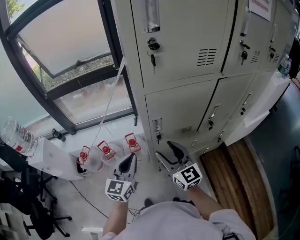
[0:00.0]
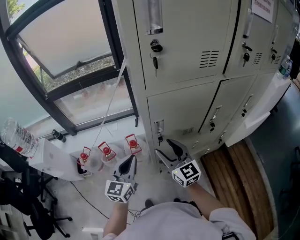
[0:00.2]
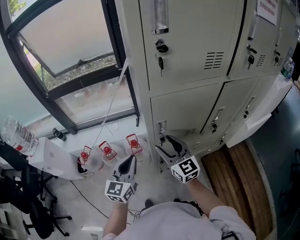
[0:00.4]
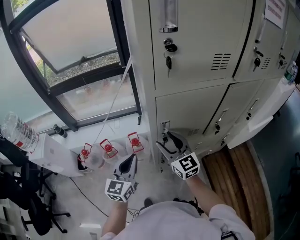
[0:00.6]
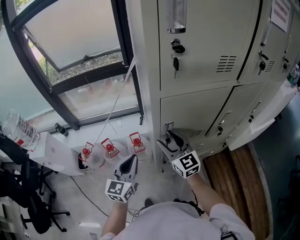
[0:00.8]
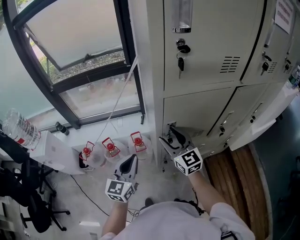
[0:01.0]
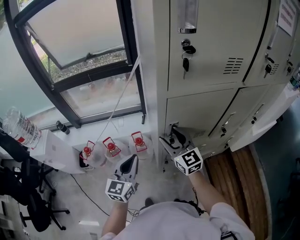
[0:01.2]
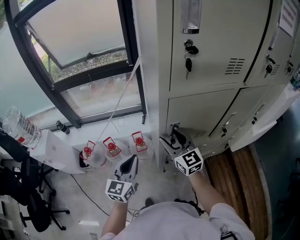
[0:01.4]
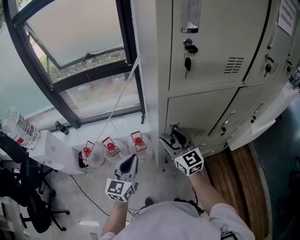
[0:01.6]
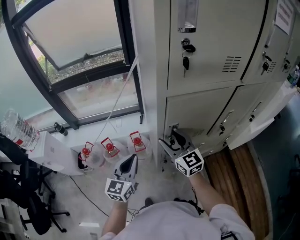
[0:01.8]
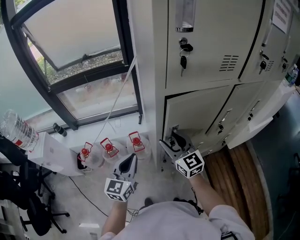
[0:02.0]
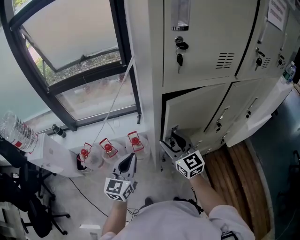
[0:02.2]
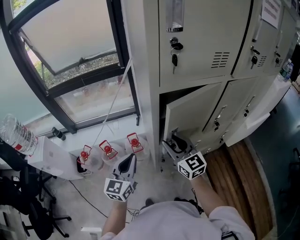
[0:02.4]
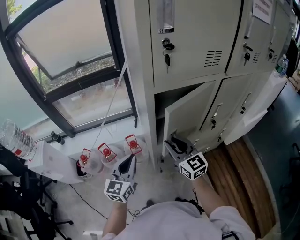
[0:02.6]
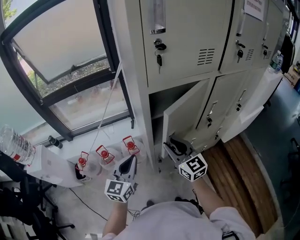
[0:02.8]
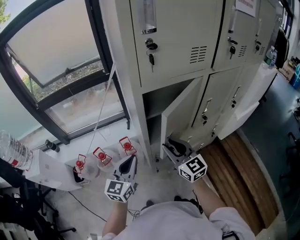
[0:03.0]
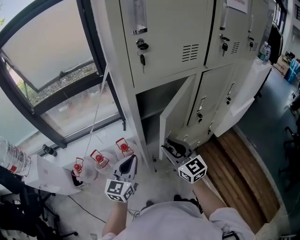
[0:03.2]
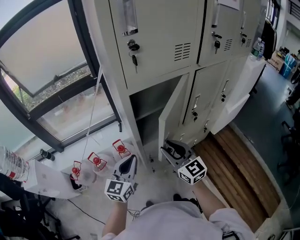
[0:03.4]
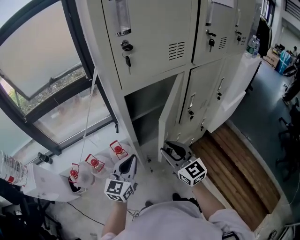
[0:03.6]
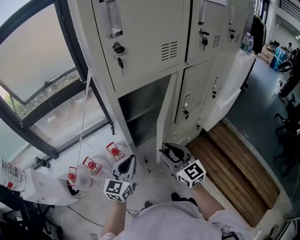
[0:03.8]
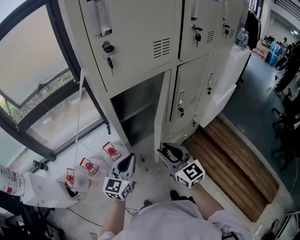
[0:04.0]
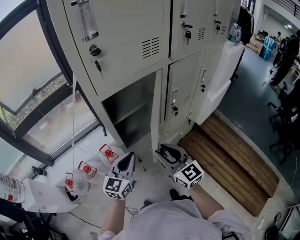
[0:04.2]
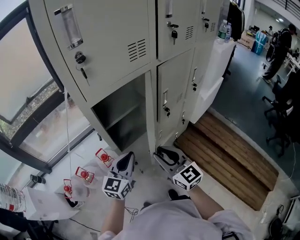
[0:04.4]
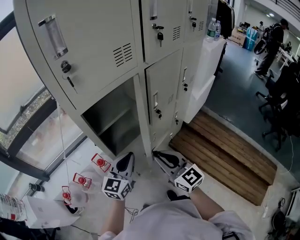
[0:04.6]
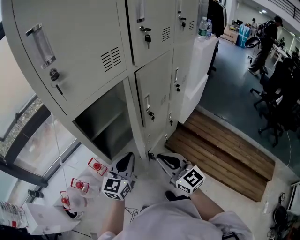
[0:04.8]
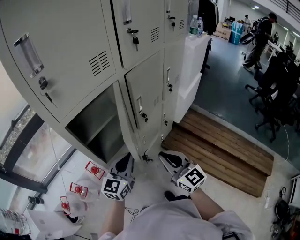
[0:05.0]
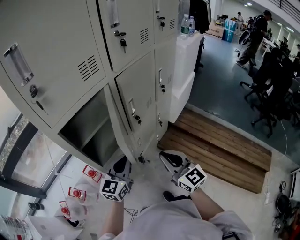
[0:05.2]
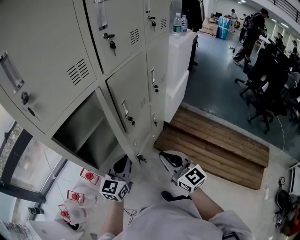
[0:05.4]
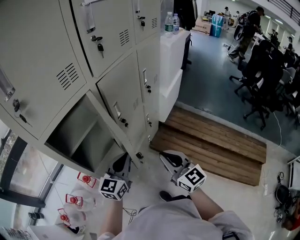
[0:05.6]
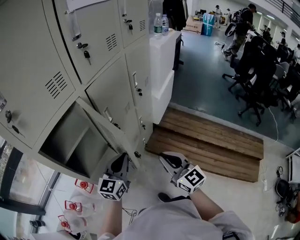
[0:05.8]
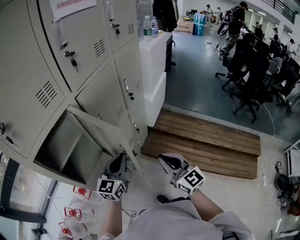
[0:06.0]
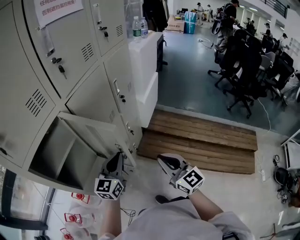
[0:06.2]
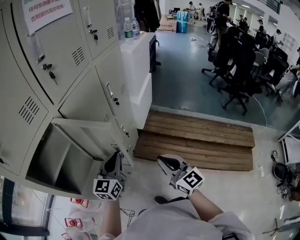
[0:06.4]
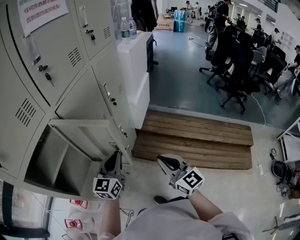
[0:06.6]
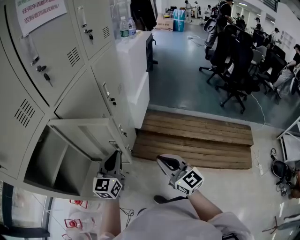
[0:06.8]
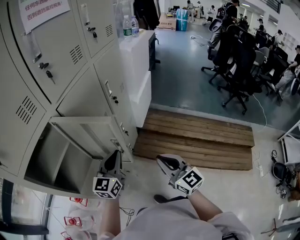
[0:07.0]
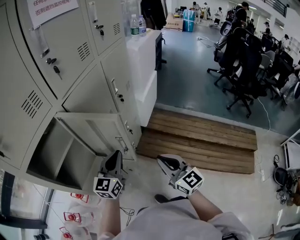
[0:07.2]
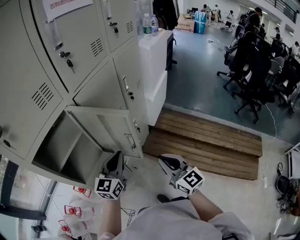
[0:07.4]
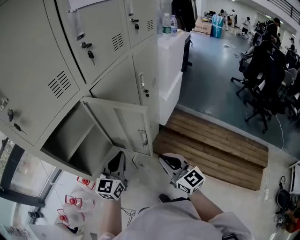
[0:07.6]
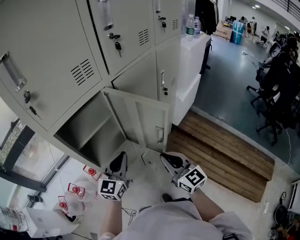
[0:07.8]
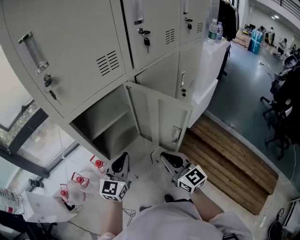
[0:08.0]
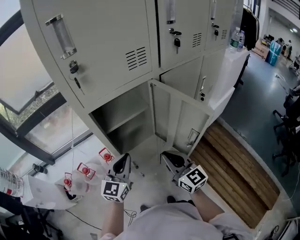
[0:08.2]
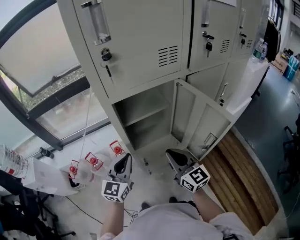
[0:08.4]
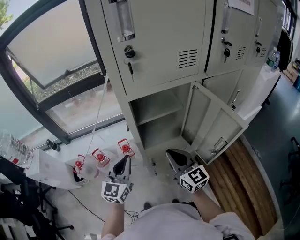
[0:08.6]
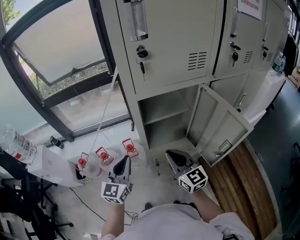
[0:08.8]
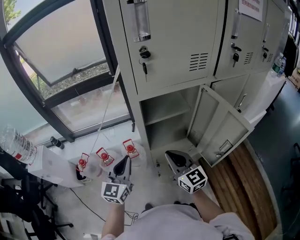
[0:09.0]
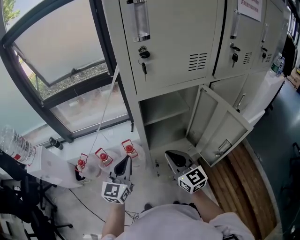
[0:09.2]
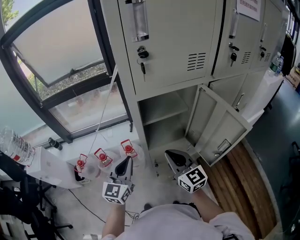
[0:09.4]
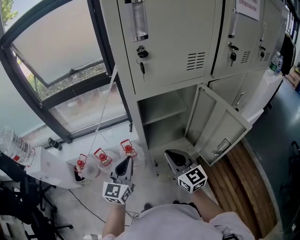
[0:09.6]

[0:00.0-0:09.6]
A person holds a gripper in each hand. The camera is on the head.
0.0 to 1.6 s: The left gripper moves approximately 5 cm; the right gripper heads forward, covering approximately 10 cm.
1.6 to 3.2 s: The right gripper travels backward and to the right by some 10 cm, and closes up; the left gripper moves to the right, some 5 cm.
3.2 to 4.8 s: The right gripper moves to the right and backward, about 15 cm, and closes up. Meanwhile the left gripper is displaced to the right by roughly 15 cm, and rotates roughly 20 degrees.
4.8 to 6.4 s: The right gripper shifts approximately 20 cm to the right, and swivels roughly 30 degrees. The left gripper is displaced to the right and forward by some 20 cm.
6.4 to 8.0 s: The right gripper moves about 20 cm, and turns by some 30 degrees. The left gripper changes place by some 20 cm, and rotates about 30 degrees.
8.0 to 9.6 s: The right gripper travels to the left and forward by approximately 20 cm. Meanwhile the left gripper heads to the left, covering some 20 cm, and changes its angle by about 20 degrees.

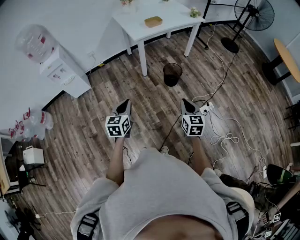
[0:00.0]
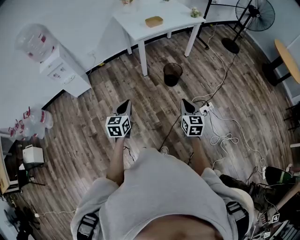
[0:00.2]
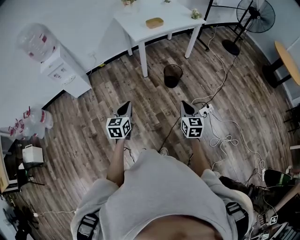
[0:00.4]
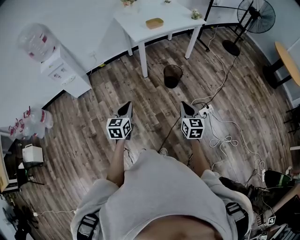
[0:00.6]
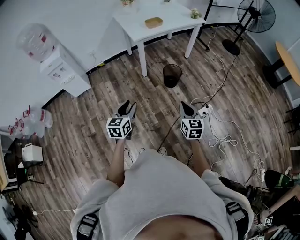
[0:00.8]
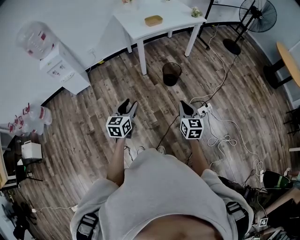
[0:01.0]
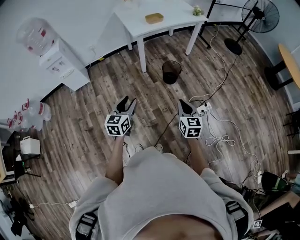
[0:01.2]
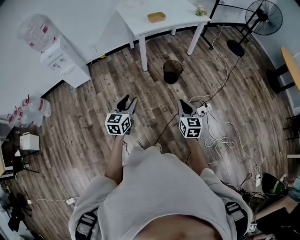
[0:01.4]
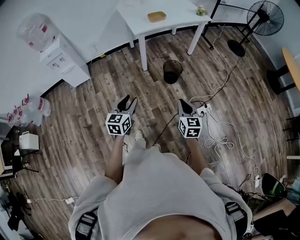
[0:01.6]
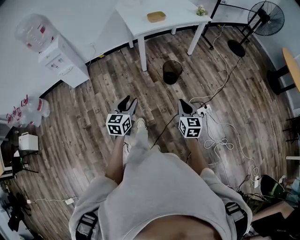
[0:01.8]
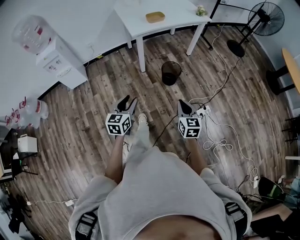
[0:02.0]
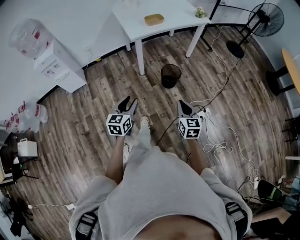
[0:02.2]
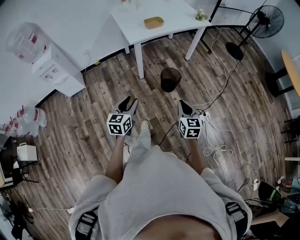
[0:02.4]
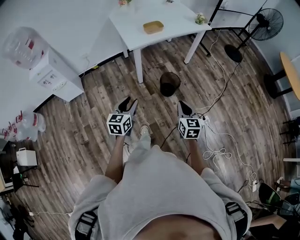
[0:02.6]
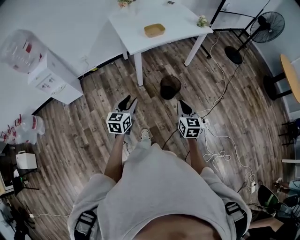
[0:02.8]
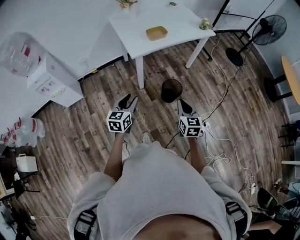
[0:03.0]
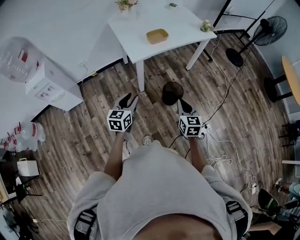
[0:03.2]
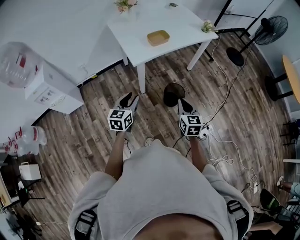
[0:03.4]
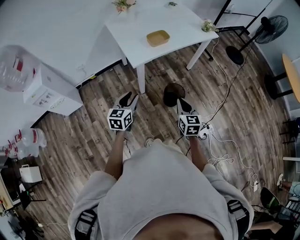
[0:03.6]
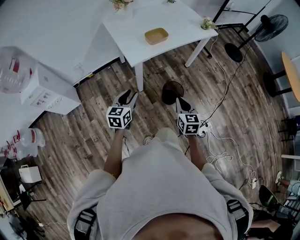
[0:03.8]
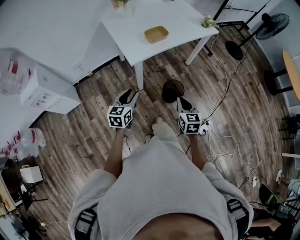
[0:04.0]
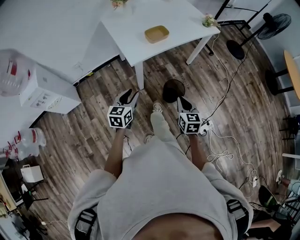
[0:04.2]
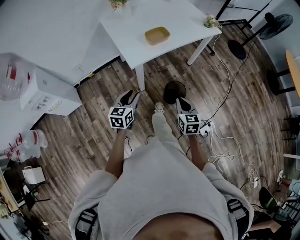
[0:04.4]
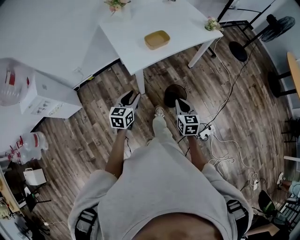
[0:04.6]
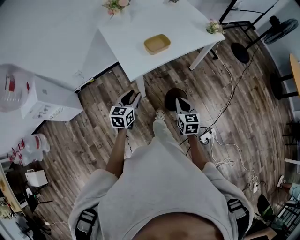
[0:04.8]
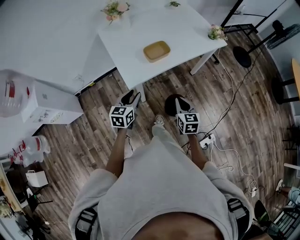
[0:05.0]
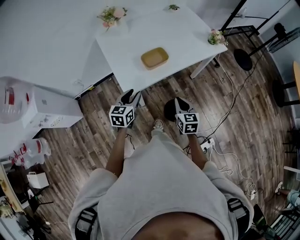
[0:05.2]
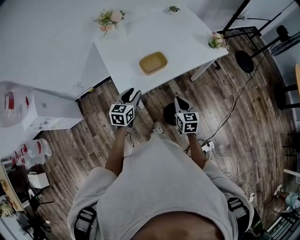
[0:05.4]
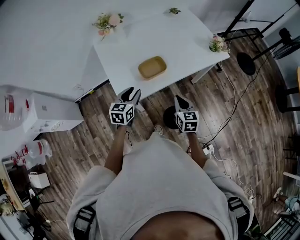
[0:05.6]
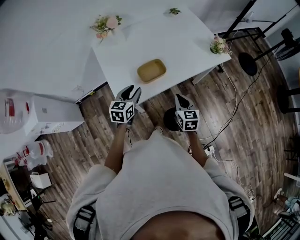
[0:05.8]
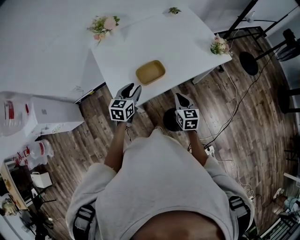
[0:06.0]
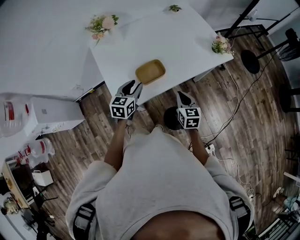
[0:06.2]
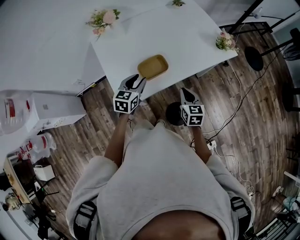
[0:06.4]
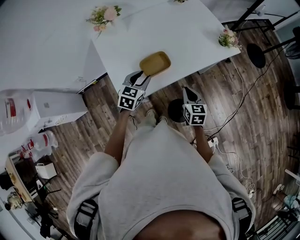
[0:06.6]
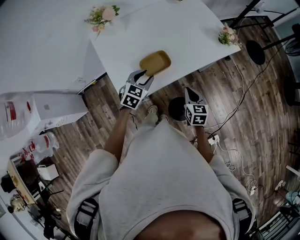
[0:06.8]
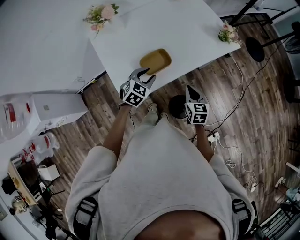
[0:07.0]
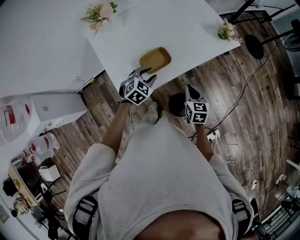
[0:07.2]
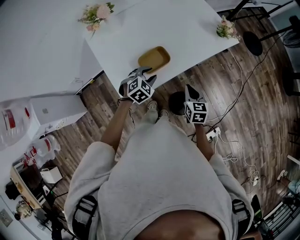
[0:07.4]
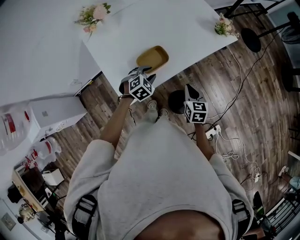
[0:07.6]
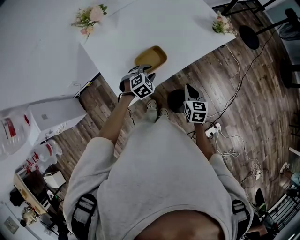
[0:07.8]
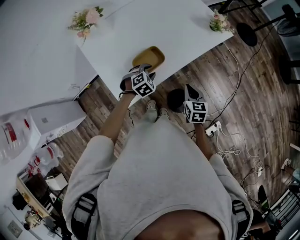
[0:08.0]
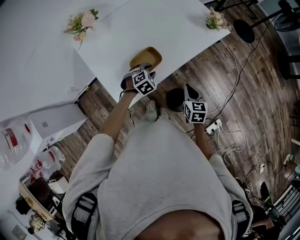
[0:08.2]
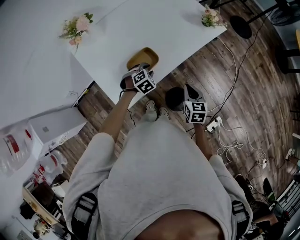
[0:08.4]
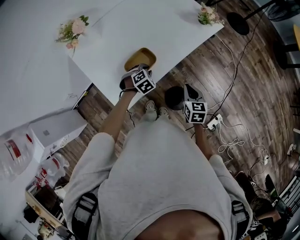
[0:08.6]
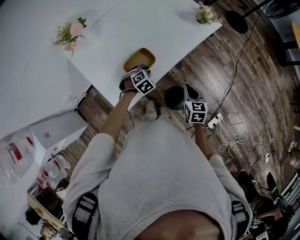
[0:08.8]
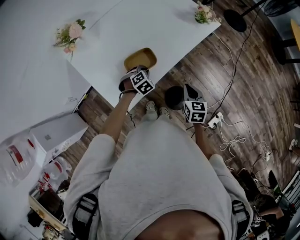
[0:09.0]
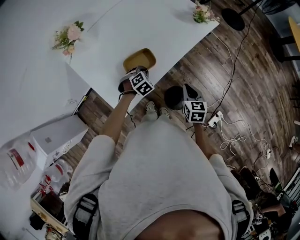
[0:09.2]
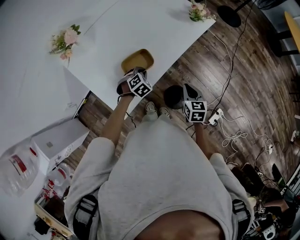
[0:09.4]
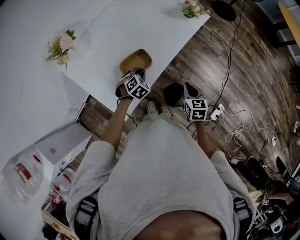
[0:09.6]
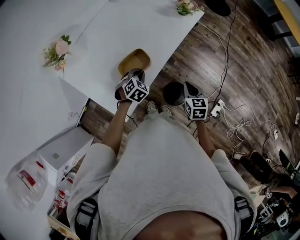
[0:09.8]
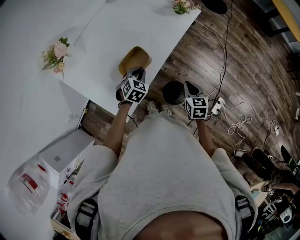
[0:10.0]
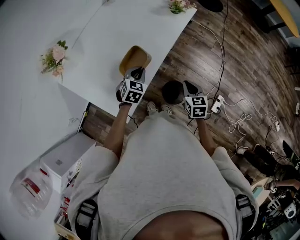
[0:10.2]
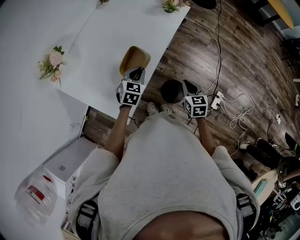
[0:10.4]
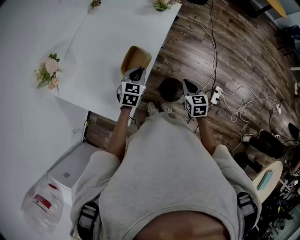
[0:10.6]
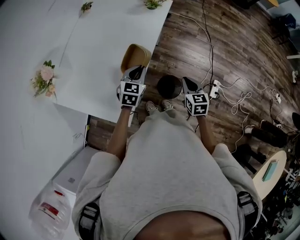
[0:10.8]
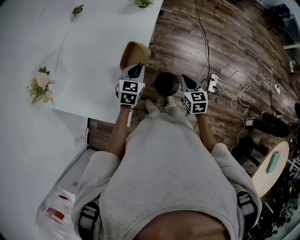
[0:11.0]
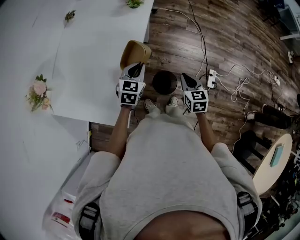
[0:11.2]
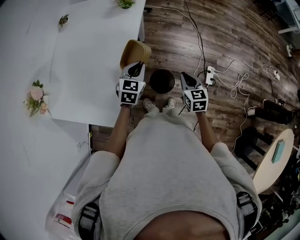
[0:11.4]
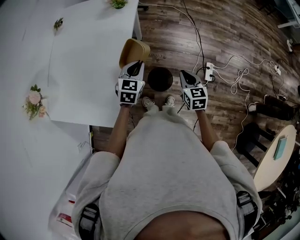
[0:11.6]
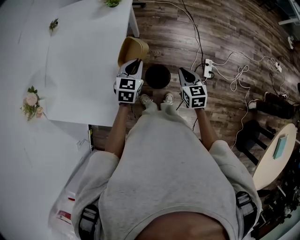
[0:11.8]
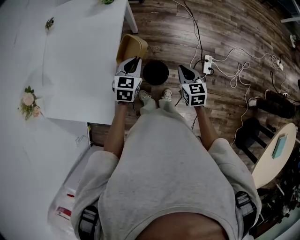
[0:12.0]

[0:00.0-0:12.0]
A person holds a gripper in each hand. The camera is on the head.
0.0 to 1.6 s: The left gripper goes roughly 5 cm to the right, and opens up.
1.6 to 3.0 s: Both grippers move forward, roughly 25 cm.
3.0 to 4.4 s: Both grippers travel together forward, roughly 15 cm.
4.4 to 6.0 s: Both grippers travel together forward, some 35 cm.
6.0 to 7.6 s: The left gripper shifts roughly 10 cm downward and to the right, and rolls clockwise, seen from behind, by some 50 degrees.
7.6 to 9.0 s: The left gripper goes about 5 cm downward, and closes.
9.0 to 10.4 s: The left gripper goes some 10 cm upward, and swivels about 30 degrees.
10.4 to 12.0 s: The two grippers go some 15 cm to the right.

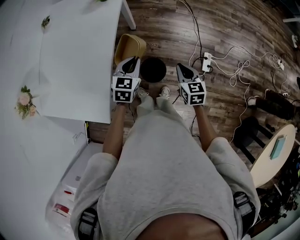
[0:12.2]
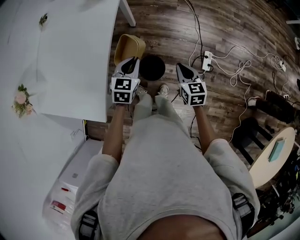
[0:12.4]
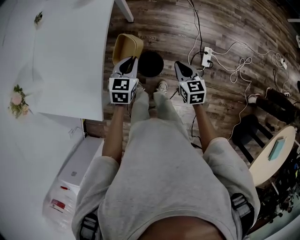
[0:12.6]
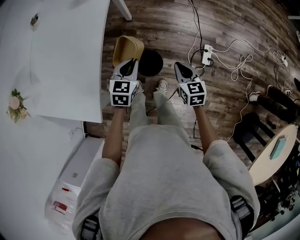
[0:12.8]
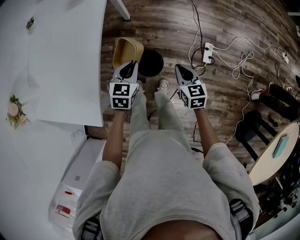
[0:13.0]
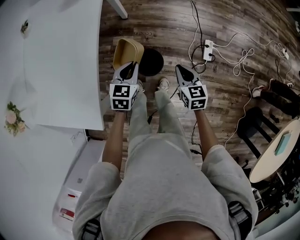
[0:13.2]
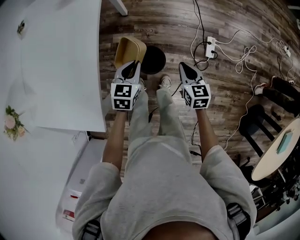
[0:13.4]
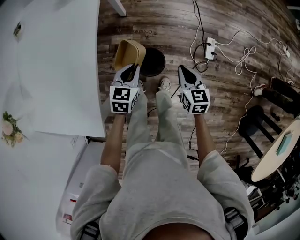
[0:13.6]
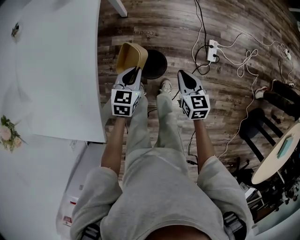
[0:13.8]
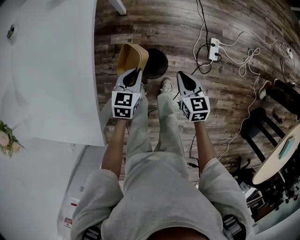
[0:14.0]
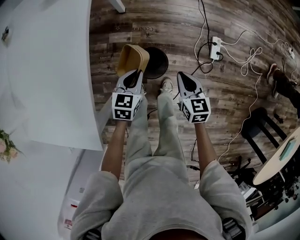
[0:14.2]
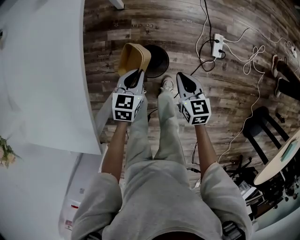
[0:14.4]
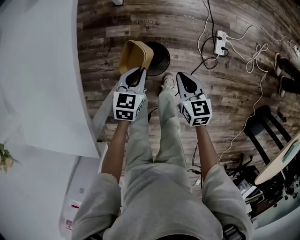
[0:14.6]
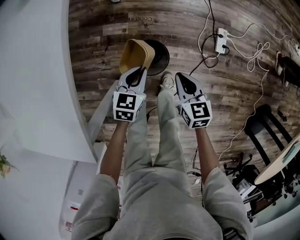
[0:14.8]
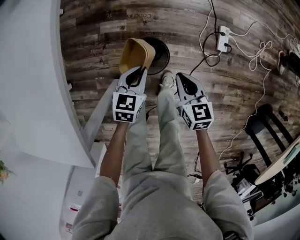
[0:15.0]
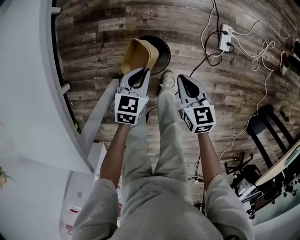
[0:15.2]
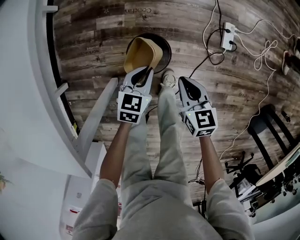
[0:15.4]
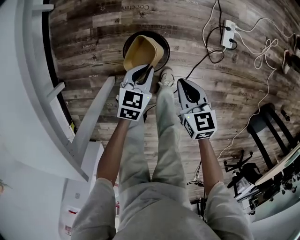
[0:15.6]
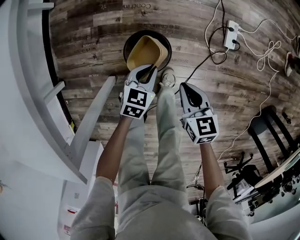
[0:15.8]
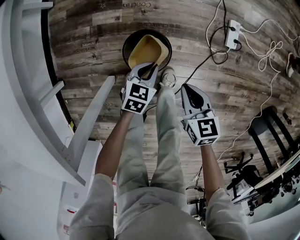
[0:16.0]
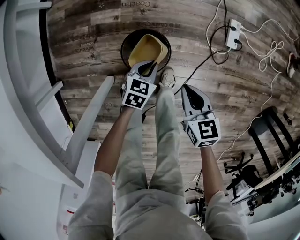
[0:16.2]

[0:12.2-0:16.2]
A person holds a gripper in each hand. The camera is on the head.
12.2 to 13.6 s: The two grippers go about 15 cm downward.
13.6 to 14.8 s: Both grippers move downward, roughly 15 cm.
14.8 to 16.2 s: The right gripper goes some 10 cm downward. Meanwhile the left gripper heads downward, covering roughly 20 cm.
